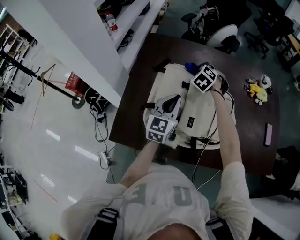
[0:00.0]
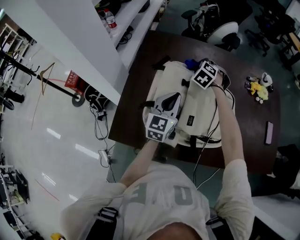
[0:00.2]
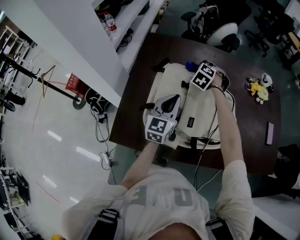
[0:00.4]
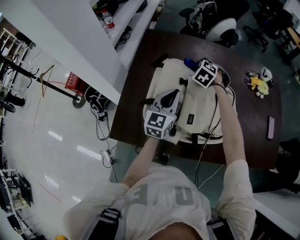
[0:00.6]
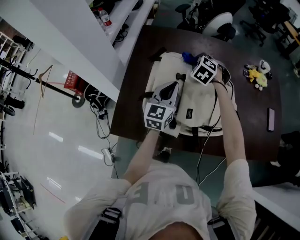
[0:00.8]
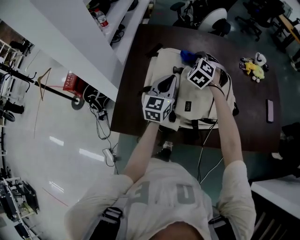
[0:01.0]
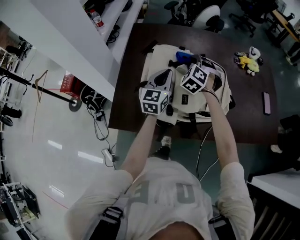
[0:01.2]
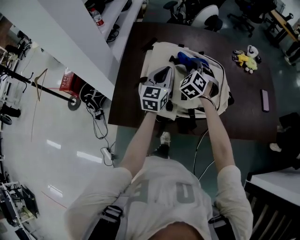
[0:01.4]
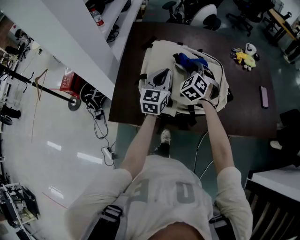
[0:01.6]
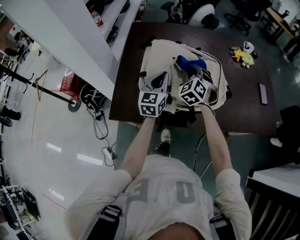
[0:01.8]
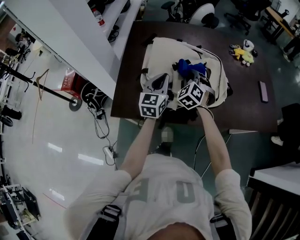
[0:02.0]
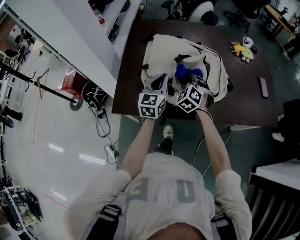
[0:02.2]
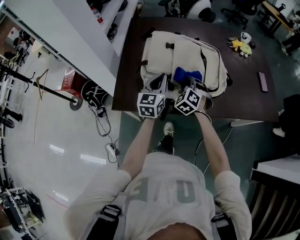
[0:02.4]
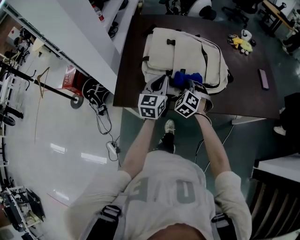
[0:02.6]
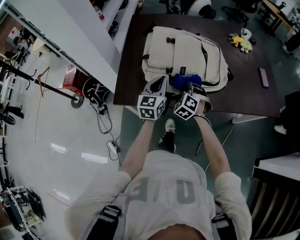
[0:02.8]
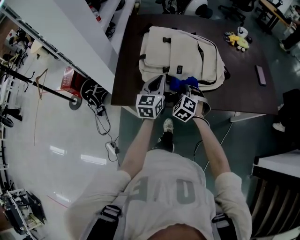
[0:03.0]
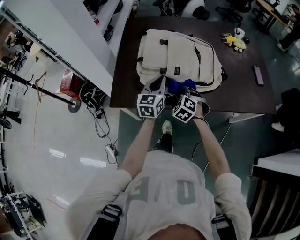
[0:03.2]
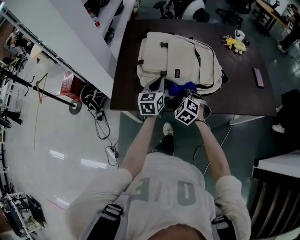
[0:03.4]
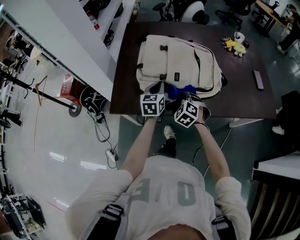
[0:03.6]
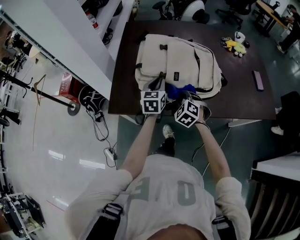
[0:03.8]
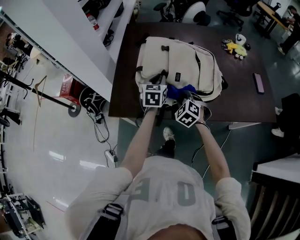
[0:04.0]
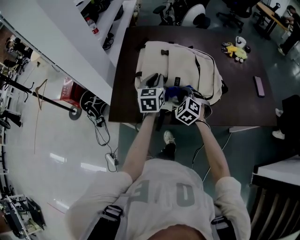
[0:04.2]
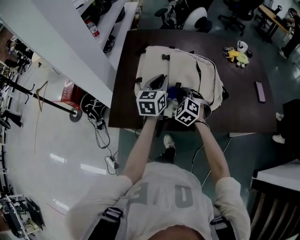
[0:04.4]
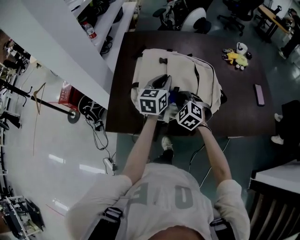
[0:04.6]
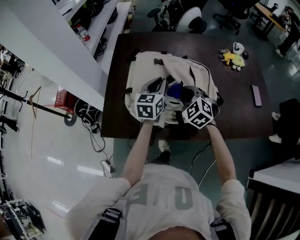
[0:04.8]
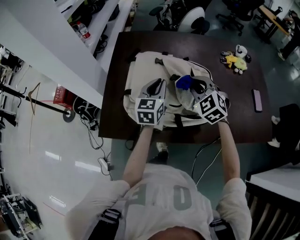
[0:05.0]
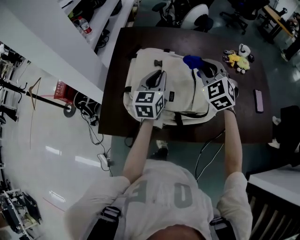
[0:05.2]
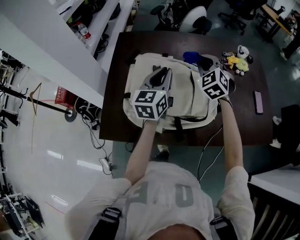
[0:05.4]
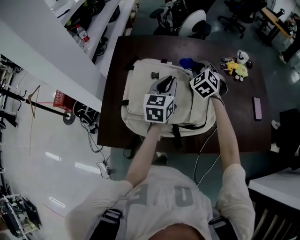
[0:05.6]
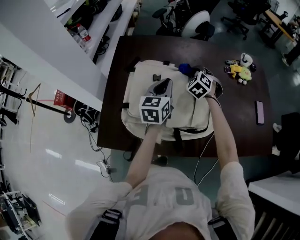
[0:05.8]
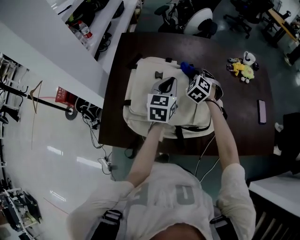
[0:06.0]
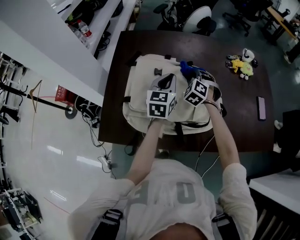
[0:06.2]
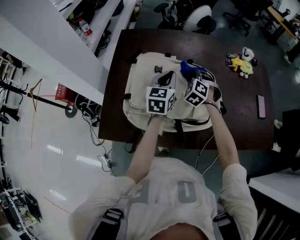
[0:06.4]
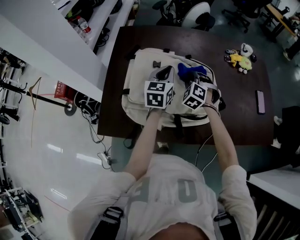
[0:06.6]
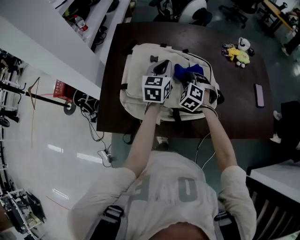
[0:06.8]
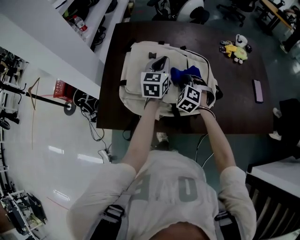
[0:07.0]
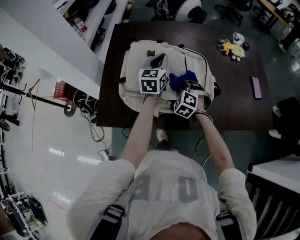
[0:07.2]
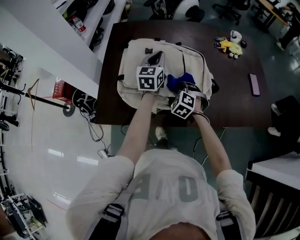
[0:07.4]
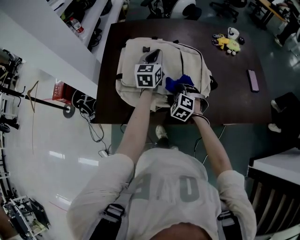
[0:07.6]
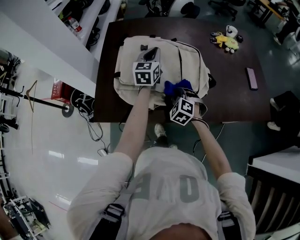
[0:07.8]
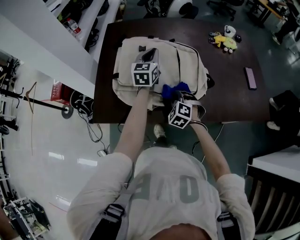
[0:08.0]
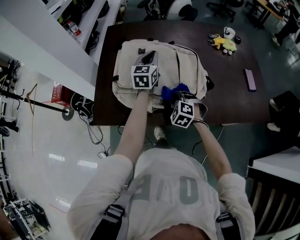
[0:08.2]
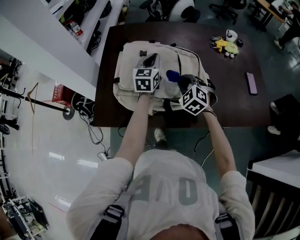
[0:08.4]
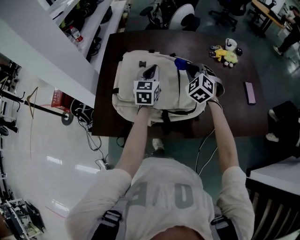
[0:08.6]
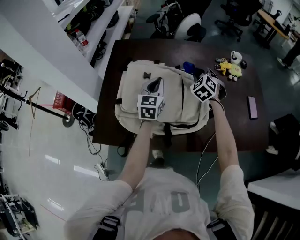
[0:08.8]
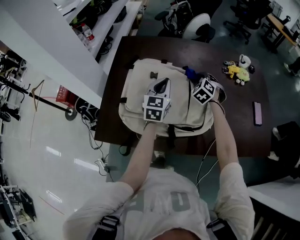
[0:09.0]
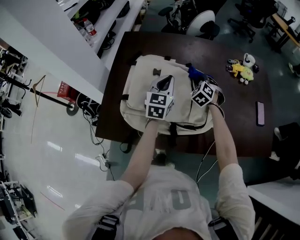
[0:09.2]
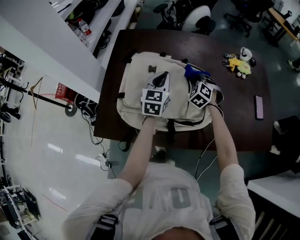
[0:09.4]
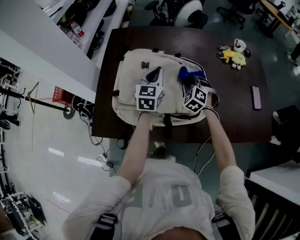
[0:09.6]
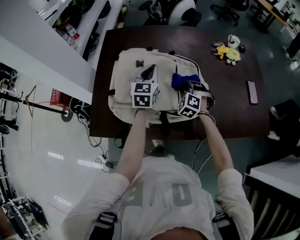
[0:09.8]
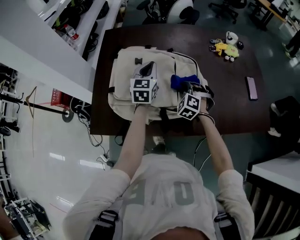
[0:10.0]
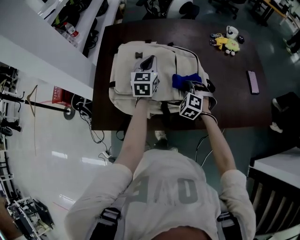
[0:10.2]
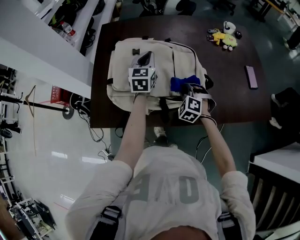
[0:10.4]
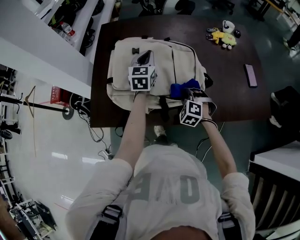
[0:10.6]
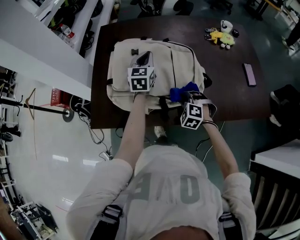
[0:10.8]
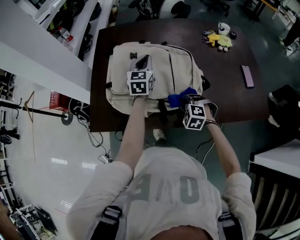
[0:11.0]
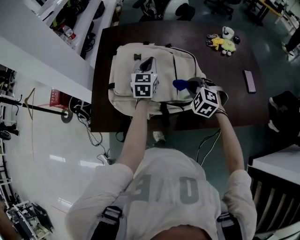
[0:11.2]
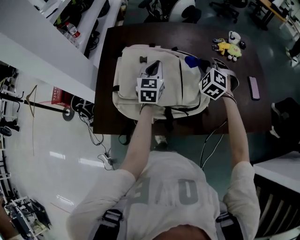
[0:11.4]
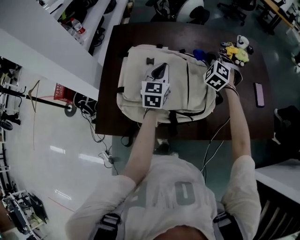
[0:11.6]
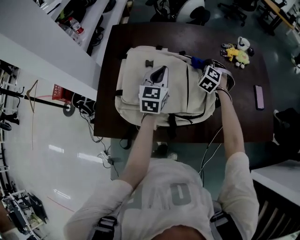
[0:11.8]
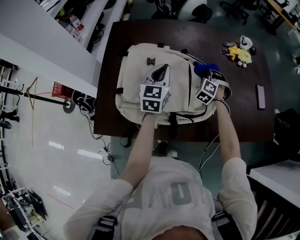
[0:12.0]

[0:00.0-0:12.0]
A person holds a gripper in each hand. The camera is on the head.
0:00.0 to 0:01.6: The right gripper goes roughly 15 cm backward, and rotates approximately 20 degrees.
0:01.6 to 0:03.0: The right gripper travels backward and downward by approximately 25 cm, while the left gripper shifts some 15 cm backward.
0:03.0 to 0:04.4: The two grippers go some 10 cm forward.
0:04.4 to 0:06.0: The right gripper travels forward by roughly 20 cm, while the left gripper goes about 15 cm forward and to the right.
0:06.0 to 0:07.6: The right gripper goes roughly 25 cm backward.
0:07.6 to 0:09.0: The right gripper travels forward by about 20 cm.
0:09.0 to 0:10.4: The right gripper shifts some 20 cm backward.
0:10.4 to 0:12.0: The right gripper is displaced forward by about 20 cm.

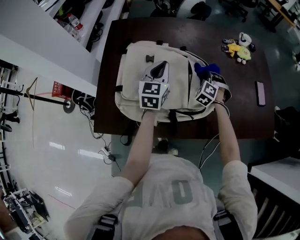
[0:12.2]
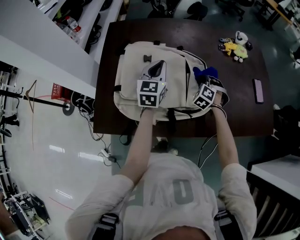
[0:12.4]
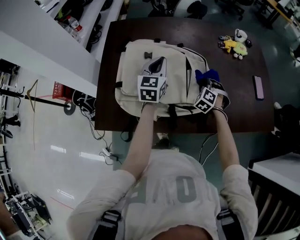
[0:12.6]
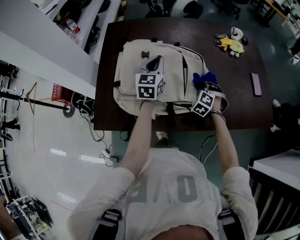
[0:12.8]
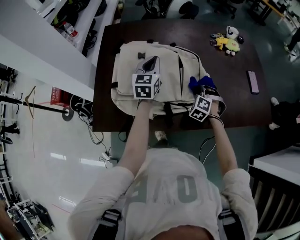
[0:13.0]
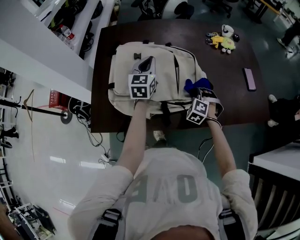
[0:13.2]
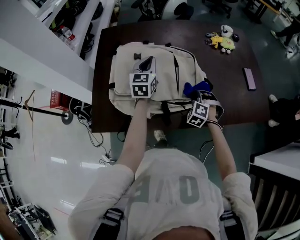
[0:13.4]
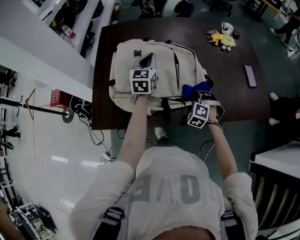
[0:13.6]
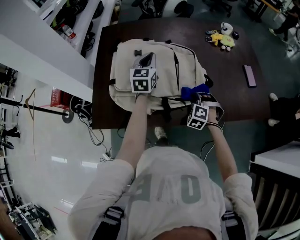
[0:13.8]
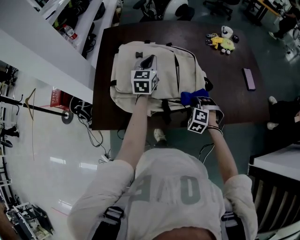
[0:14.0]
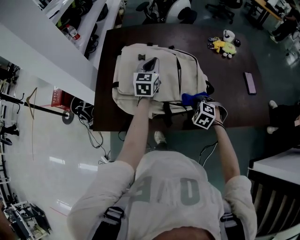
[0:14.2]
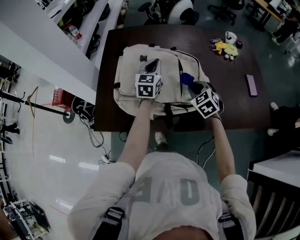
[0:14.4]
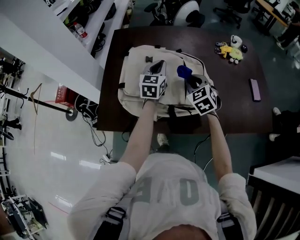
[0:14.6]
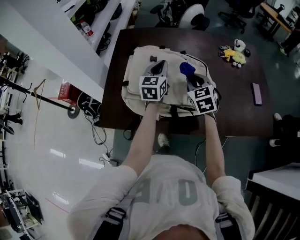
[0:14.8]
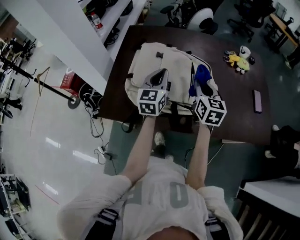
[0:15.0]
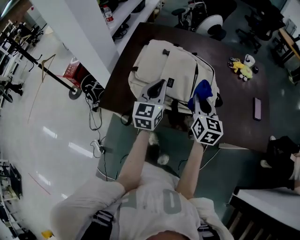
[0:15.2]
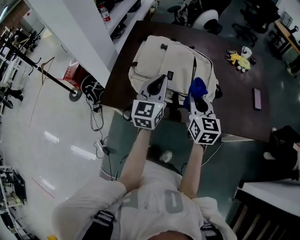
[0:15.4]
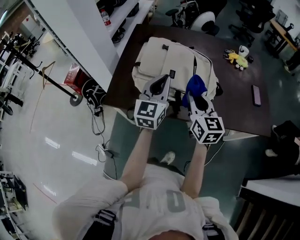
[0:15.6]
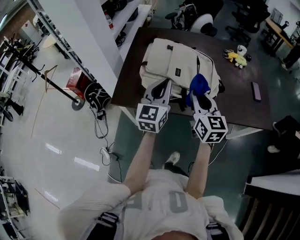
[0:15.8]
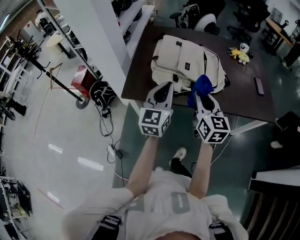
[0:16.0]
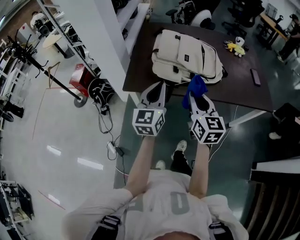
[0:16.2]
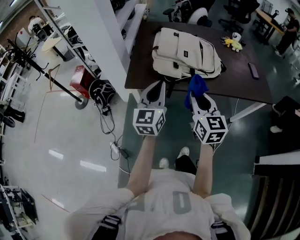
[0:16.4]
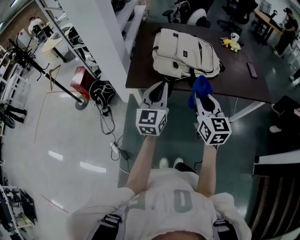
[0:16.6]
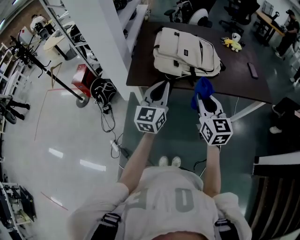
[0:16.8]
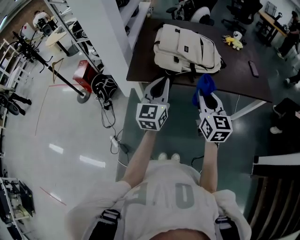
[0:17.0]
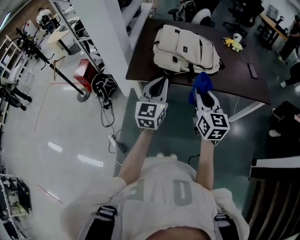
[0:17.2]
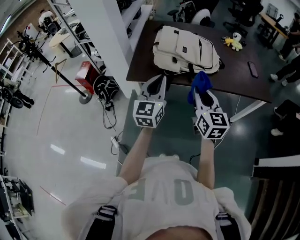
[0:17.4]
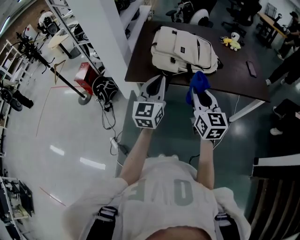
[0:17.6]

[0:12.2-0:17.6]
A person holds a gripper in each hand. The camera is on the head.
0:12.2 to 0:13.6: The right gripper heads backward, covering some 20 cm.
0:13.6 to 0:15.0: The right gripper heads upward, covering roughly 20 cm, and rotates around the line of its fingers by approximately 70 degrees, clockwise from behind; the left gripper heads backward, covering about 10 cm.
0:15.0 to 0:16.2: The left gripper shifts roughly 30 cm backward; the right gripper moves backward and to the left, some 35 cm.
0:16.2 to 0:17.6: Both grippers move backward, approximately 10 cm.

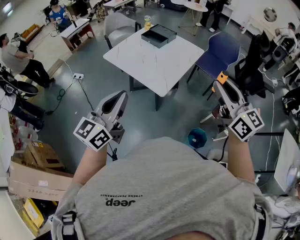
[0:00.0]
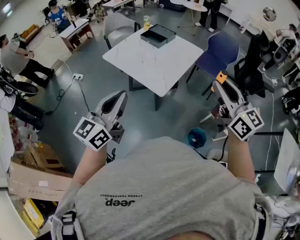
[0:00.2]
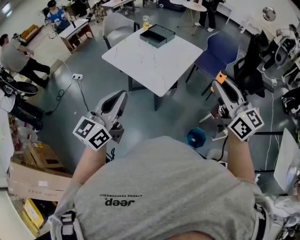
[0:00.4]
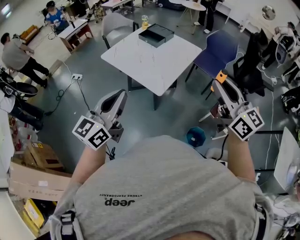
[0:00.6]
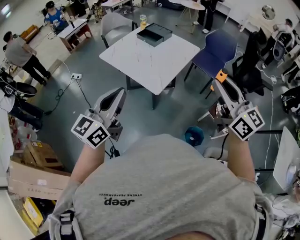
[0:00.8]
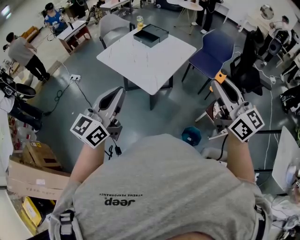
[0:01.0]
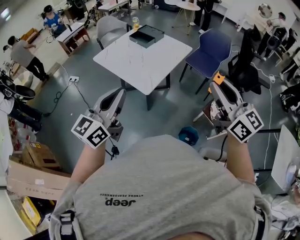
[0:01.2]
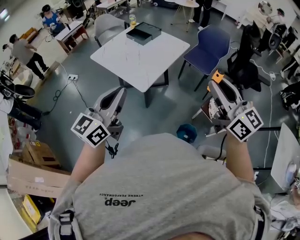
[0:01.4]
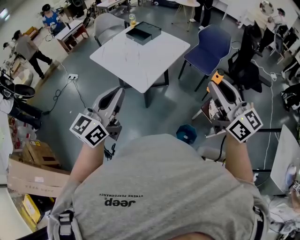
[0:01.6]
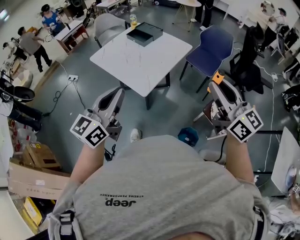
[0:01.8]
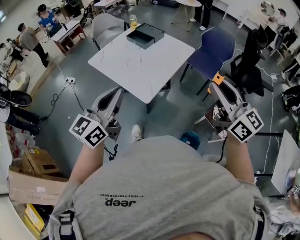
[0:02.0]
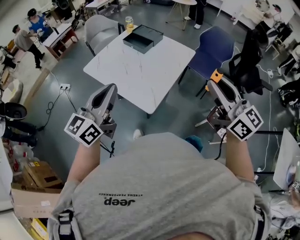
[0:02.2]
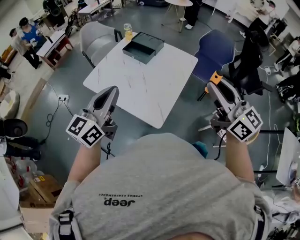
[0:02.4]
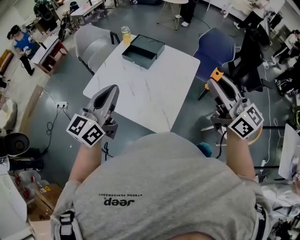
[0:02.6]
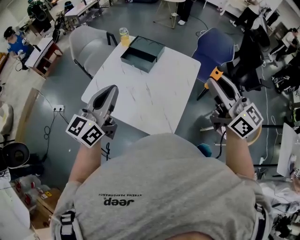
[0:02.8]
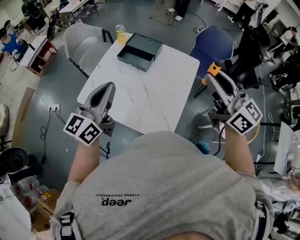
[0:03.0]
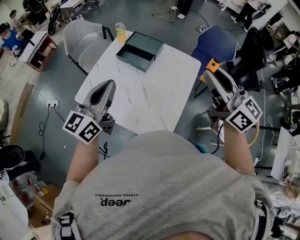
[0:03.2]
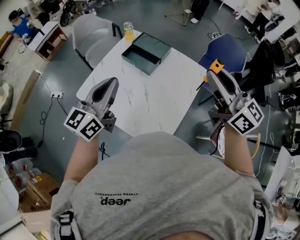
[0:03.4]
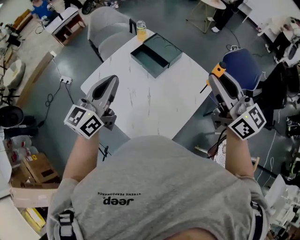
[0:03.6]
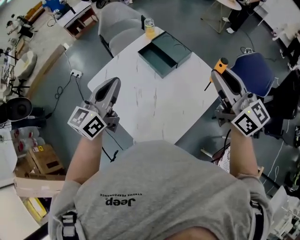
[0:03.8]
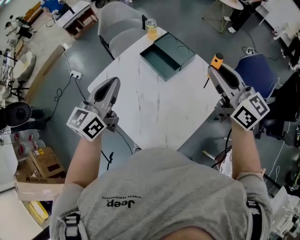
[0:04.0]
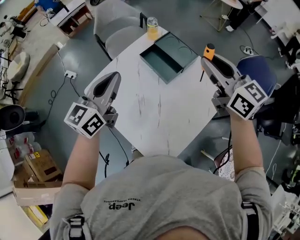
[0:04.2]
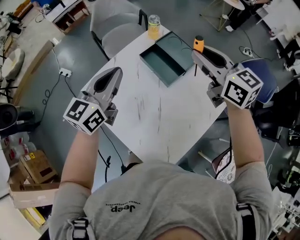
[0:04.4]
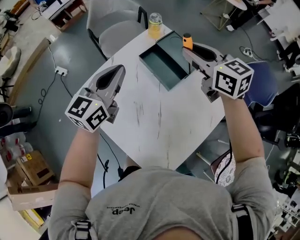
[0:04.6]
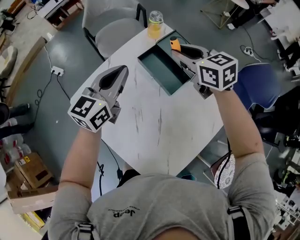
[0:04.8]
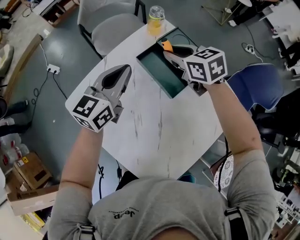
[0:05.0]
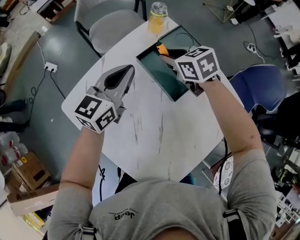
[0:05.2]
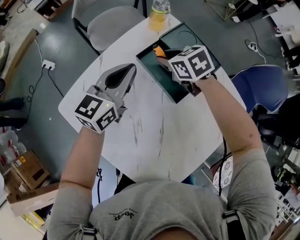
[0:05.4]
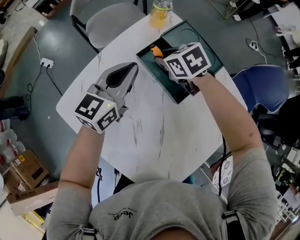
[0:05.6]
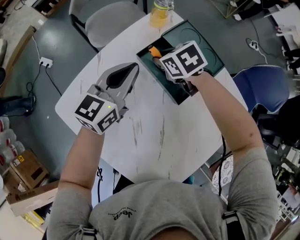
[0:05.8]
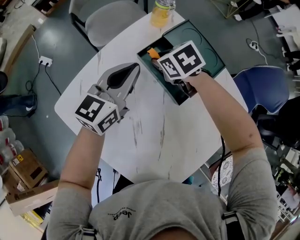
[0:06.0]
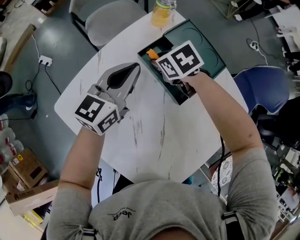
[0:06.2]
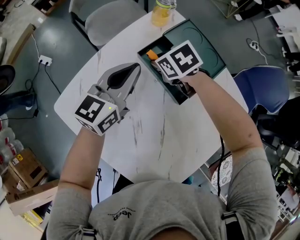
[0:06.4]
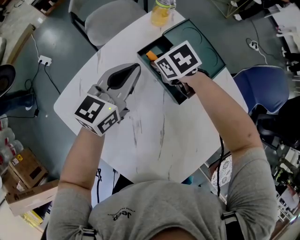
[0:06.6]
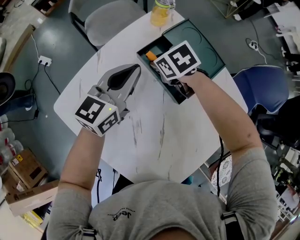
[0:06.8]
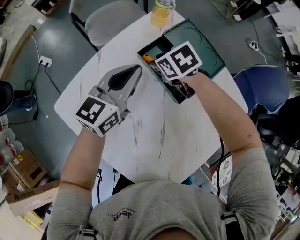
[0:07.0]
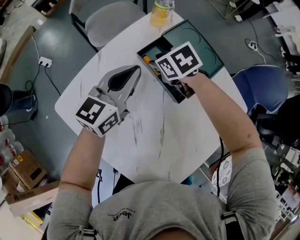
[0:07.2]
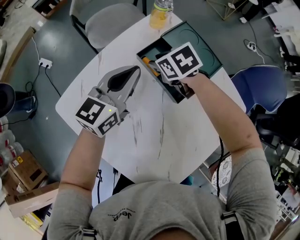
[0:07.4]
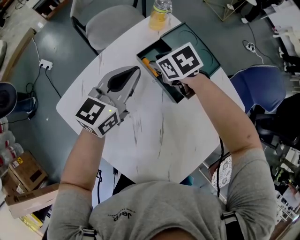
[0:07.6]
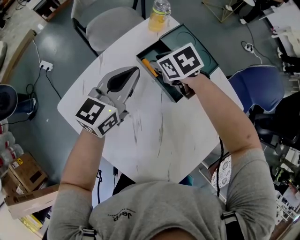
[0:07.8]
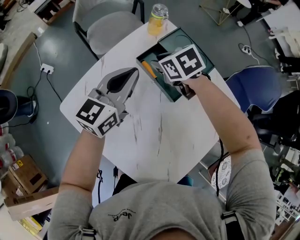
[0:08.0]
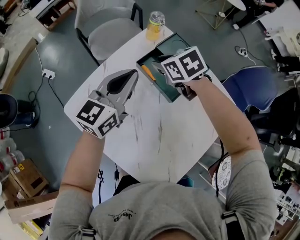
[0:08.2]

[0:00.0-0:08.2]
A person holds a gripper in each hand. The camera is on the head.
0:00.0 to 0:01.6: Both grippers travel together to the right, approximately 15 cm.
0:01.6 to 0:03.2: Both grippers are carried forward and to the left, roughly 50 cm.
0:03.2 to 0:05.0: The left gripper heads forward and downward, covering about 35 cm, and rotates roughly 20 degrees; the right gripper travels forward and downward by approximately 50 cm, and points its fingers roughly 40 degrees further downward.
0:05.0 to 0:06.6: The right gripper is displaced downward by roughly 15 cm, and rotates some 30 degrees. Meanwhile the left gripper travels downward by some 5 cm.
0:06.6 to 0:08.2: The two grippers go about 10 cm upward.
